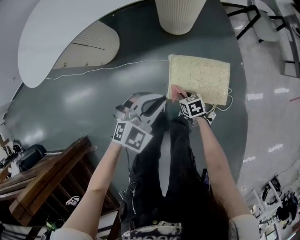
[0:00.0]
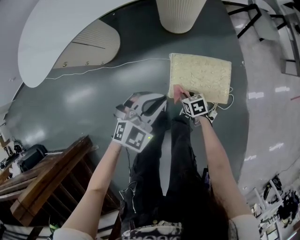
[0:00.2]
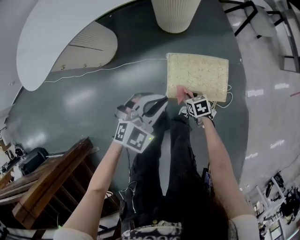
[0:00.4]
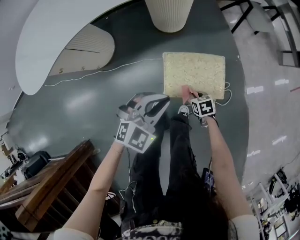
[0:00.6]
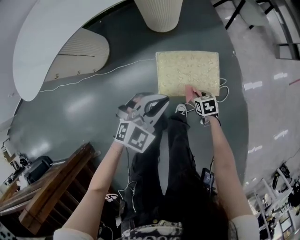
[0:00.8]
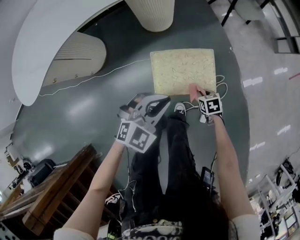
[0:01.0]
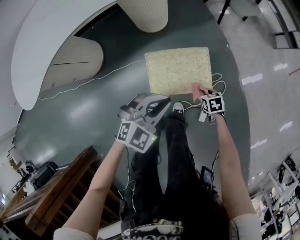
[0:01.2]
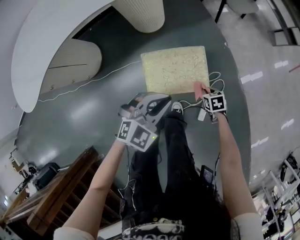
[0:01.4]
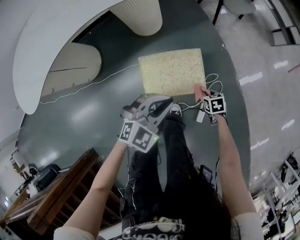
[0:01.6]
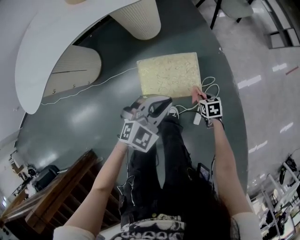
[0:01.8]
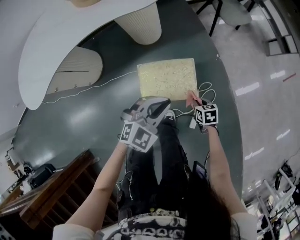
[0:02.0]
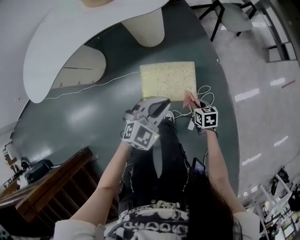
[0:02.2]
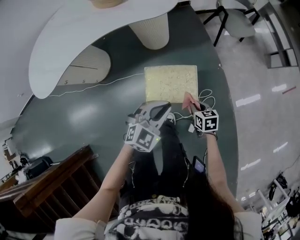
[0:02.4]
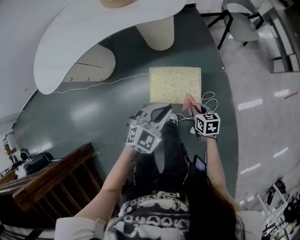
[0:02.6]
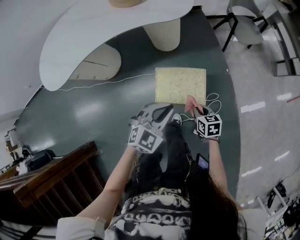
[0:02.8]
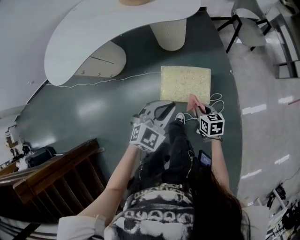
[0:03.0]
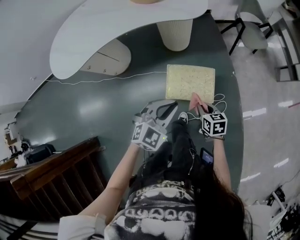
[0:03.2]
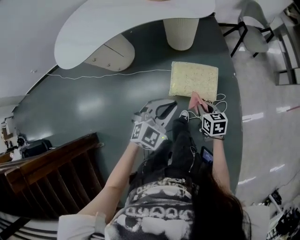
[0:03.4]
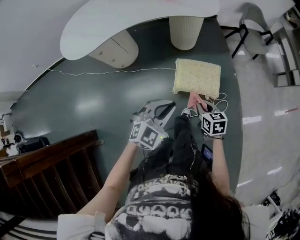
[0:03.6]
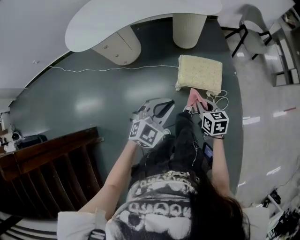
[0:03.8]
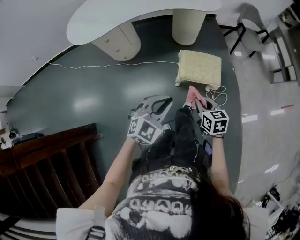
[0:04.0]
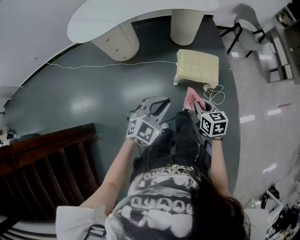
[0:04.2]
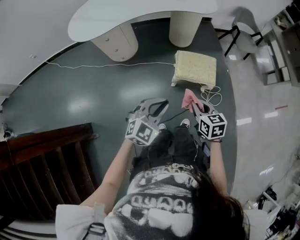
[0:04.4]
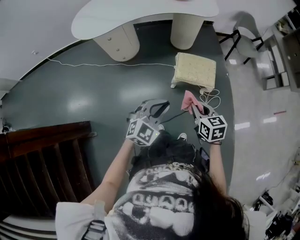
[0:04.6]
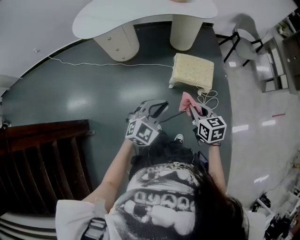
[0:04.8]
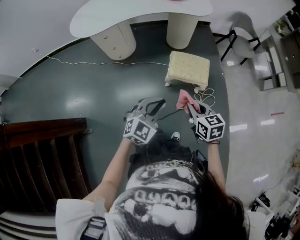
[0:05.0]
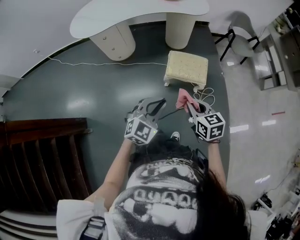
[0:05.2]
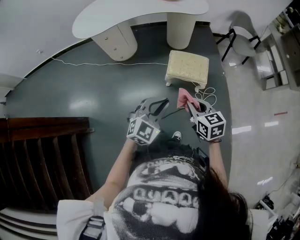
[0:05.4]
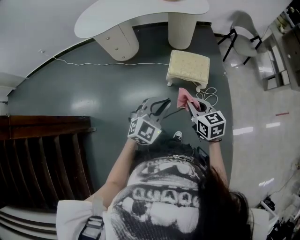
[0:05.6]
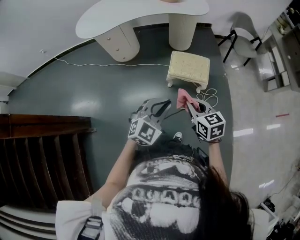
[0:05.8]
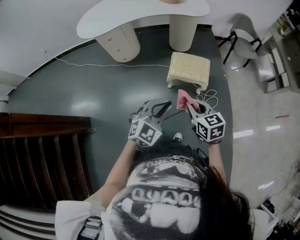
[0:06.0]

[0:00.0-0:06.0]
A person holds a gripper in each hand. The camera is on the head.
0:00.0 to 0:01.6: The right gripper moves to the right, about 30 cm, and changes its angle by about 20 degrees. The left gripper heads to the right, covering approximately 20 cm.
0:01.6 to 0:03.0: The left gripper goes about 15 cm upward, and turns by roughly 20 degrees. The right gripper shifts some 25 cm upward and to the left, and swivels about 20 degrees.
0:03.0 to 0:04.4: The right gripper moves backward, to the left and upward, roughly 30 cm; the left gripper goes roughly 30 cm backward and to the left.
0:04.4 to 0:06.0: The left gripper moves to the right and backward, roughly 15 cm; the right gripper heads backward, upward and to the right, covering about 15 cm.

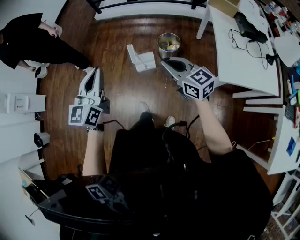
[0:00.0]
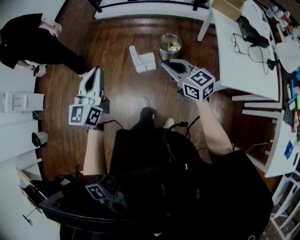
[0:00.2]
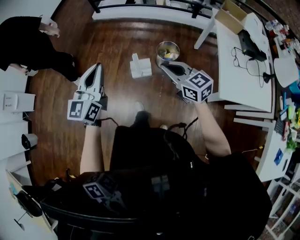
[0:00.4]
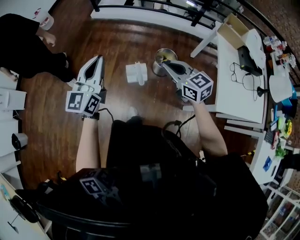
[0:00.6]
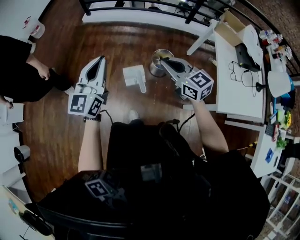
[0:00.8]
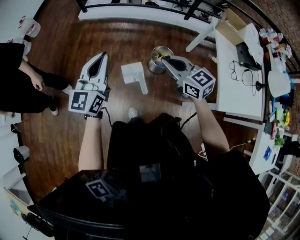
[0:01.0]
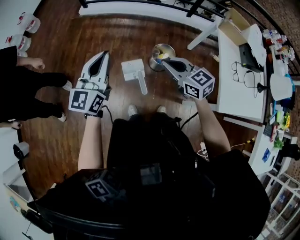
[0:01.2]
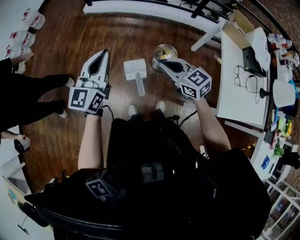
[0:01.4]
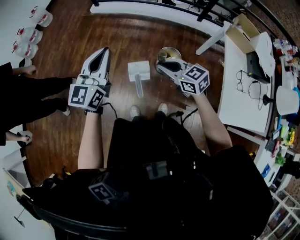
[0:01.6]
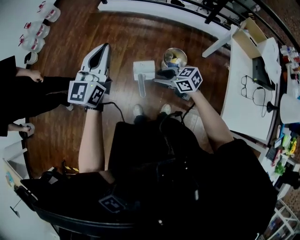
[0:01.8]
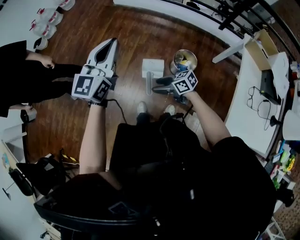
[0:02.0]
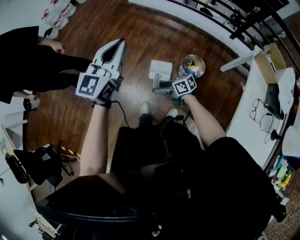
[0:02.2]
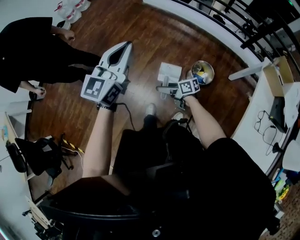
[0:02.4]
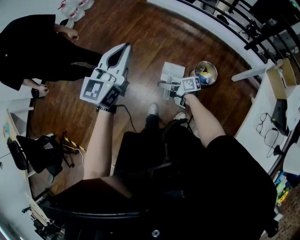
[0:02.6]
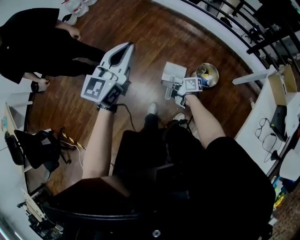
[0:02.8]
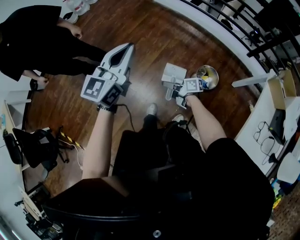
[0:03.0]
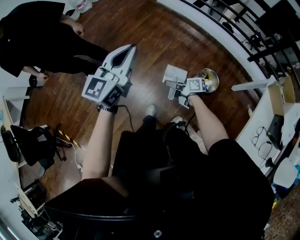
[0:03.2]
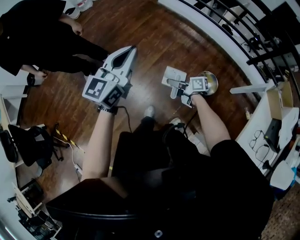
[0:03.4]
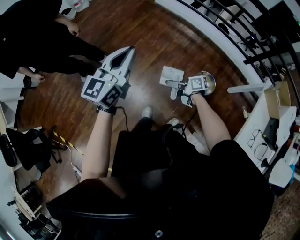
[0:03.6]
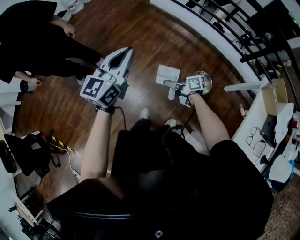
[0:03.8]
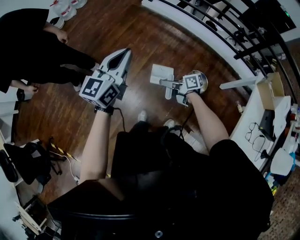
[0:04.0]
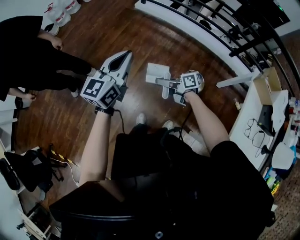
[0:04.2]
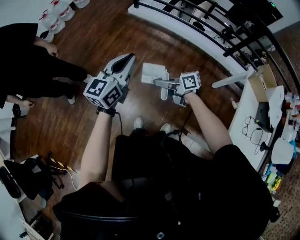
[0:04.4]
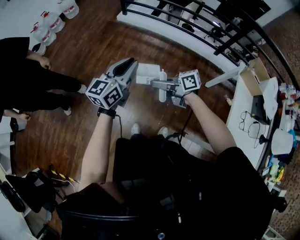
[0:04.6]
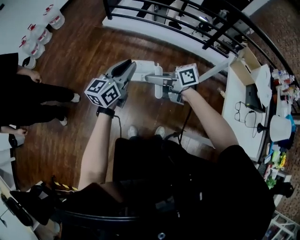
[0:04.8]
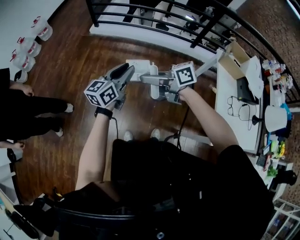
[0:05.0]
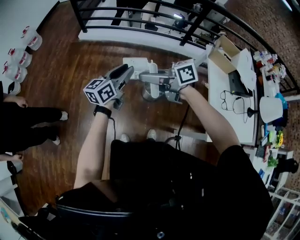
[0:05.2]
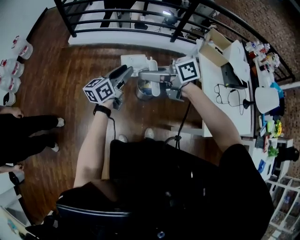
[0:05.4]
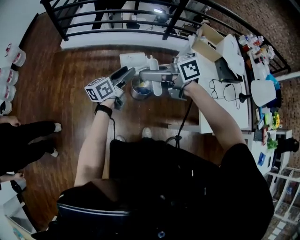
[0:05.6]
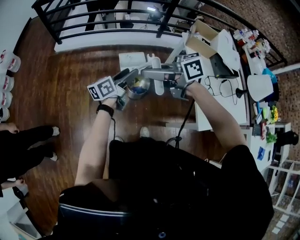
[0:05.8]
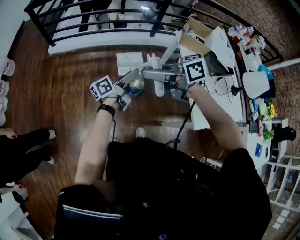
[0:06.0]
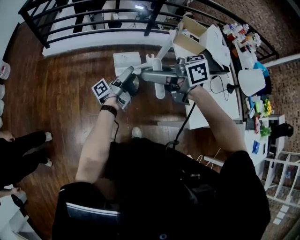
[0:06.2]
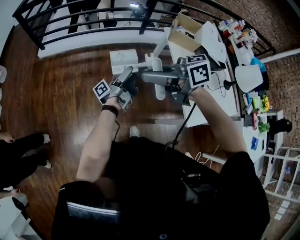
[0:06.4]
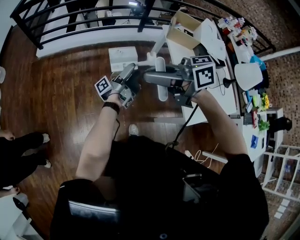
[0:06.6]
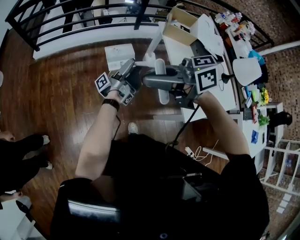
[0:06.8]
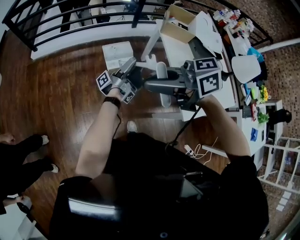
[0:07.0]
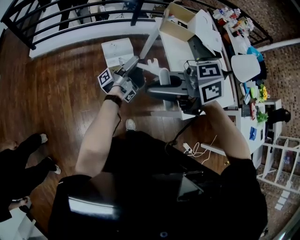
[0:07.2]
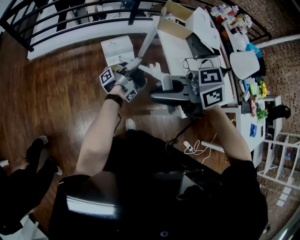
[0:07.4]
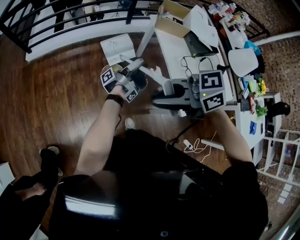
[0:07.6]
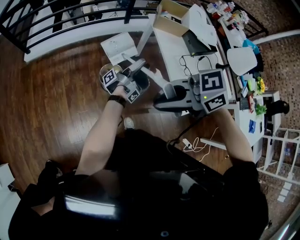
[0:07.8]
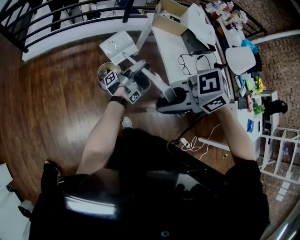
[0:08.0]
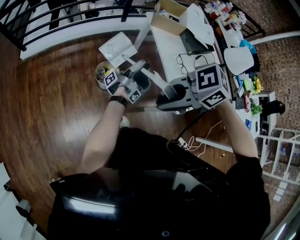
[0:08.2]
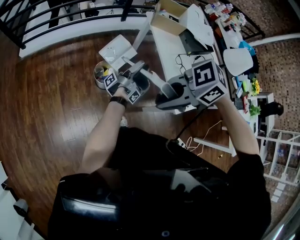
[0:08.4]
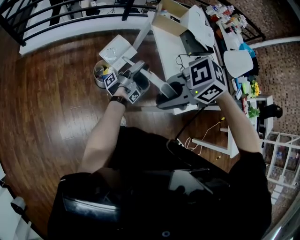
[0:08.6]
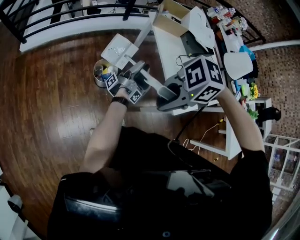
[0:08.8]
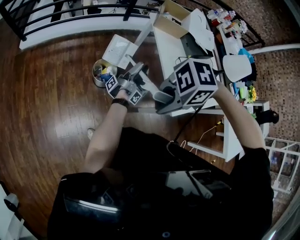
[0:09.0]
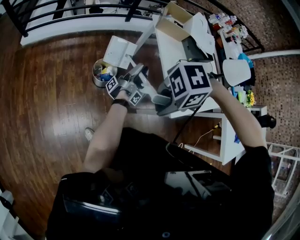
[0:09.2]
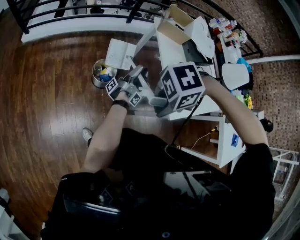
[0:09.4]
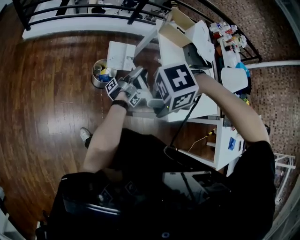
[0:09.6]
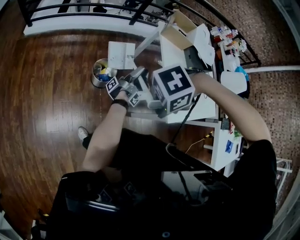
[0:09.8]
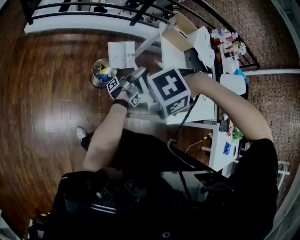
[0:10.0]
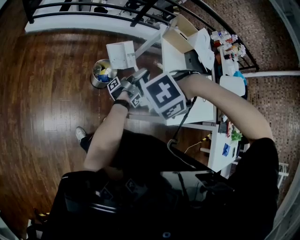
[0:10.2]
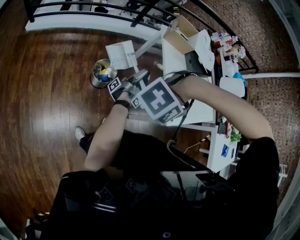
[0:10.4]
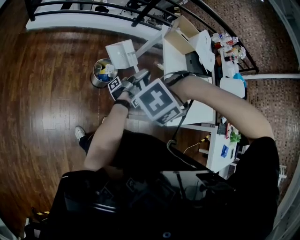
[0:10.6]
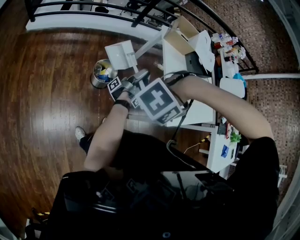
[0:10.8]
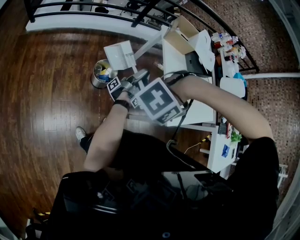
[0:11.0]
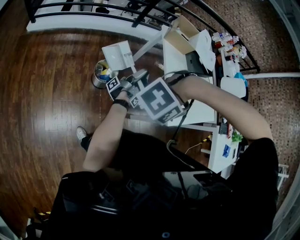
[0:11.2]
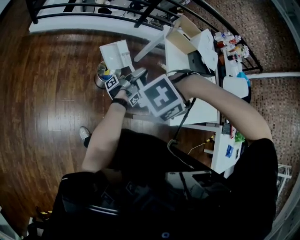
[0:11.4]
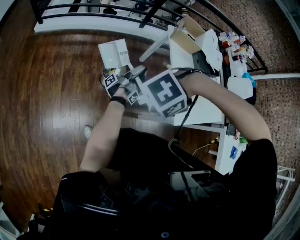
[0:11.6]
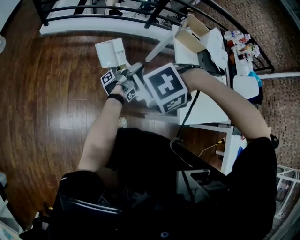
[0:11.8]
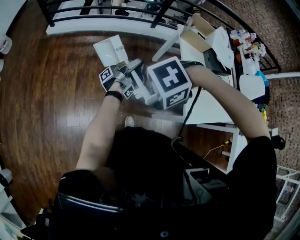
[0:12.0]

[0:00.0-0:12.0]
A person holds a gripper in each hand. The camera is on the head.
0:00.0 to 0:01.6: Both grippers travel together forward, approximately 25 cm.
0:01.6 to 0:03.0: The right gripper is displaced downward by some 15 cm, turns by about 70 degrees, and opens, then closes again; the left gripper changes place by roughly 10 cm.
0:03.0 to 0:04.4: The left gripper shifts some 5 cm forward. The right gripper goes roughly 10 cm upward and forward.
0:04.4 to 0:06.0: The right gripper moves roughly 30 cm, and turns by about 30 degrees; the left gripper ends up about 35 cm from where it was, rotates around the line of its fingers by roughly 60 degrees, counterclockwise from behind, and opens its fingers.
0:06.0 to 0:07.6: The left gripper moves to the right and backward, about 15 cm, rolls counterclockwise, seen from behind, by roughly 50 degrees, and closes. The right gripper shifts roughly 15 cm backward.
0:07.6 to 0:09.0: The right gripper shifts by some 10 cm, and changes its angle by approximately 50 degrees. The left gripper moves some 5 cm, and rotates approximately 20 degrees.
0:09.0 to 0:10.4: The right gripper rotates roughly 60 degrees.
0:10.4 to 0:12.0: The left gripper heads backward, covering approximately 15 cm. The right gripper goes approximately 10 cm backward, and changes its angle by some 30 degrees.

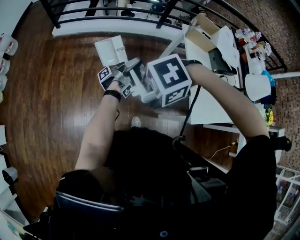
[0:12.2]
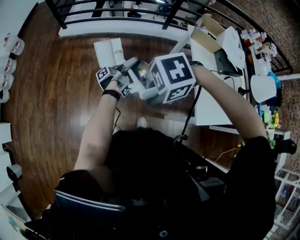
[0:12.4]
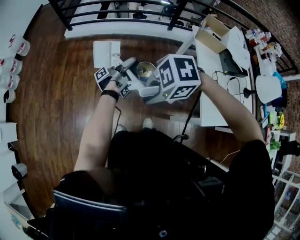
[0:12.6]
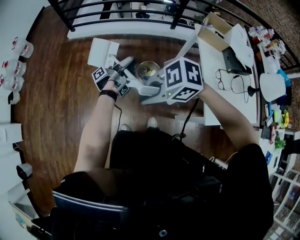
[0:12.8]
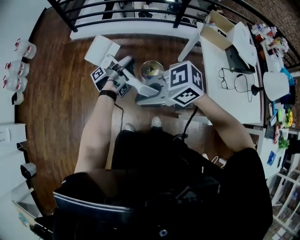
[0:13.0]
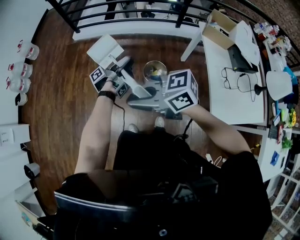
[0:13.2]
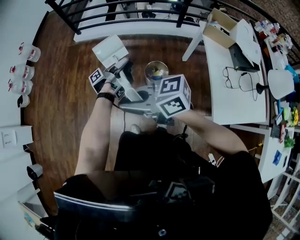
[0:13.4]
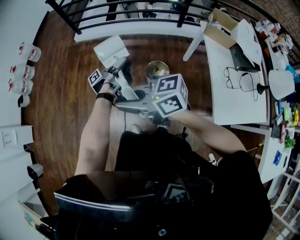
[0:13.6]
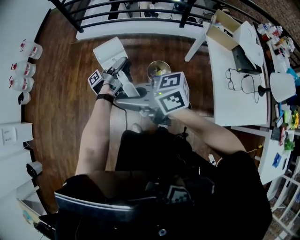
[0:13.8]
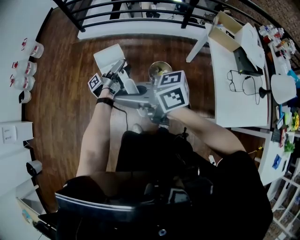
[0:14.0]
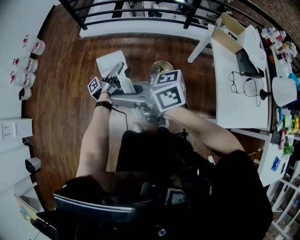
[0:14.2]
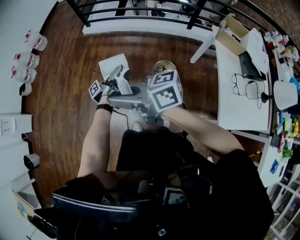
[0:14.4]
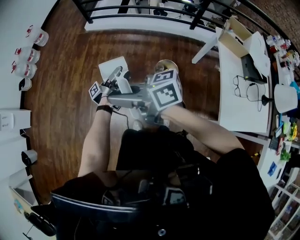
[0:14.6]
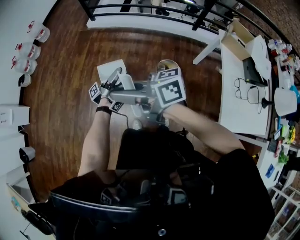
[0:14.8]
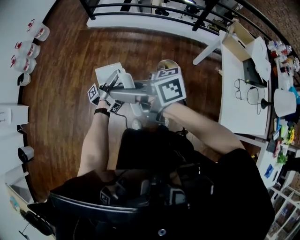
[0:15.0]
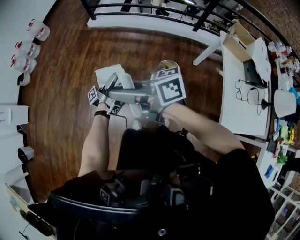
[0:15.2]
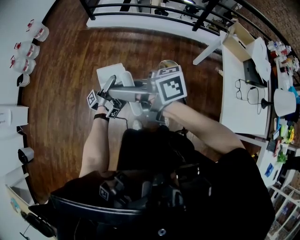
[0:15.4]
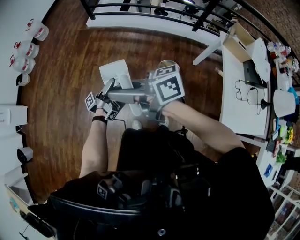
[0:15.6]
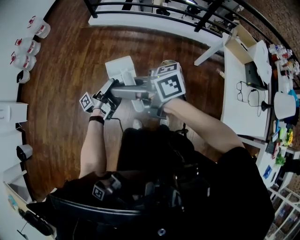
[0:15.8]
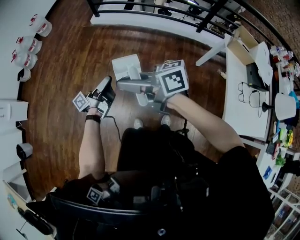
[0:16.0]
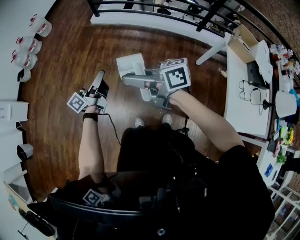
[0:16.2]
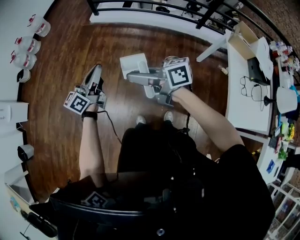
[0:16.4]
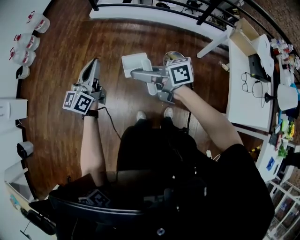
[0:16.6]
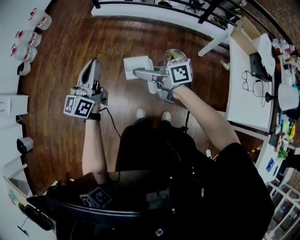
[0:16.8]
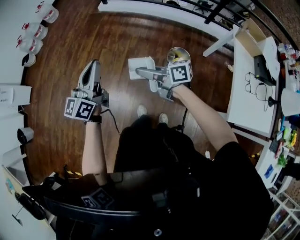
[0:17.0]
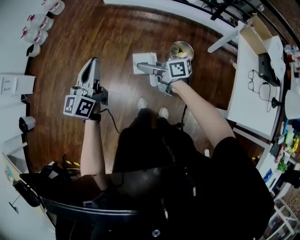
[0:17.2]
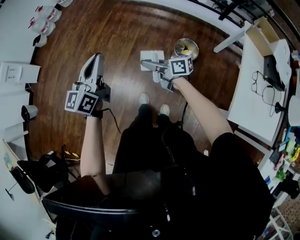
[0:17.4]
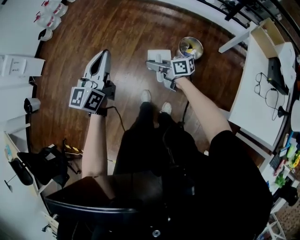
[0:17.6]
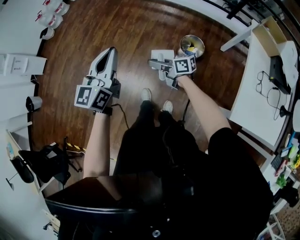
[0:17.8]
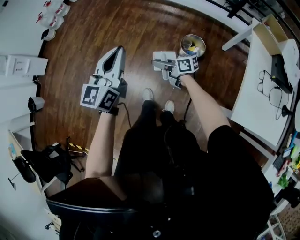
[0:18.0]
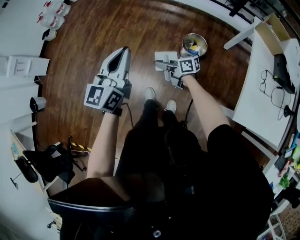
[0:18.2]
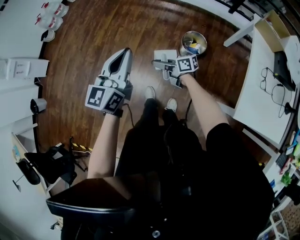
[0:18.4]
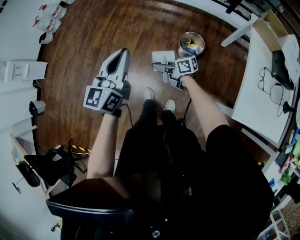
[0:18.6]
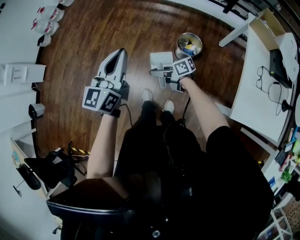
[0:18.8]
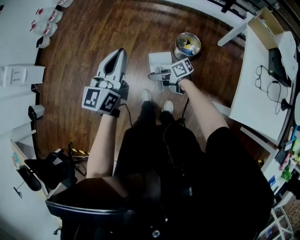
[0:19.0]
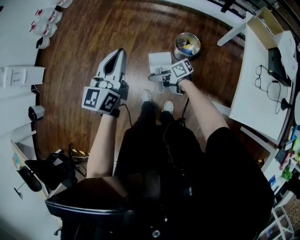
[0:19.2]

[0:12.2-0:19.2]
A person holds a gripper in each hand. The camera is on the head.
0:12.2 to 0:13.6: The left gripper ends up some 15 cm from where it was. The right gripper shifts by some 15 cm, and angles its fingers upward, by approximately 60 degrees.
0:13.6 to 0:15.0: The left gripper heads to the left, covering roughly 15 cm, and opens its fingers, while the right gripper travels to the left and forward by about 10 cm, and swivels some 20 degrees.
0:15.0 to 0:16.4: The left gripper is displaced to the left and upward by some 20 cm, twists some 70 degrees clockwise, seen from behind, and closes up; the right gripper shifts about 5 cm downward.
0:16.4 to 0:17.8: The right gripper moves downward and backward, about 25 cm, while the left gripper heads backward, covering about 20 cm, and changes its angle by about 30 degrees.
0:17.8 to 0:19.2: The right gripper is displaced downward by about 5 cm, and opens. The left gripper moves to the right, some 5 cm.
